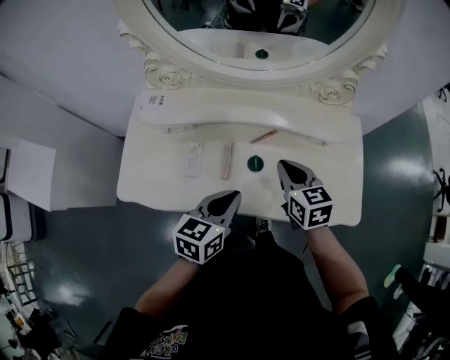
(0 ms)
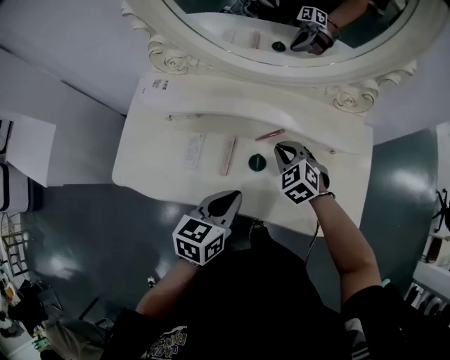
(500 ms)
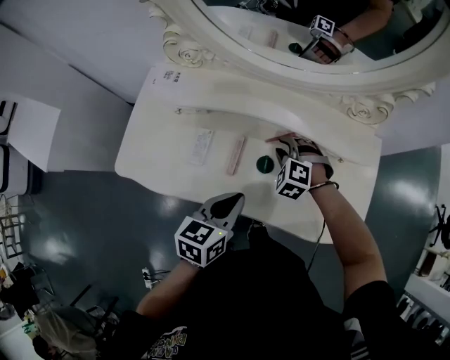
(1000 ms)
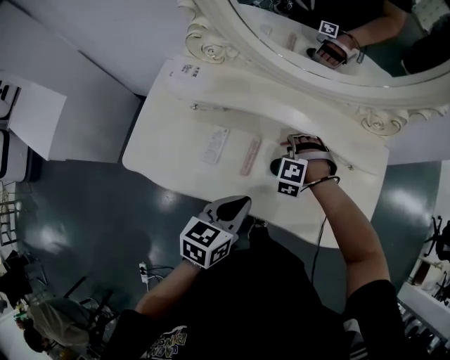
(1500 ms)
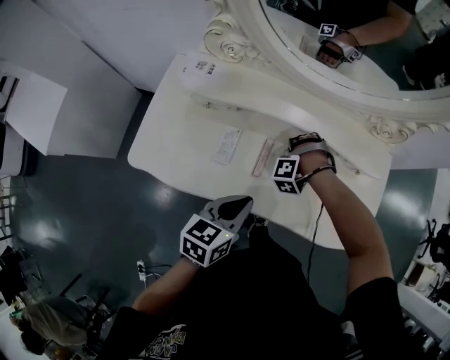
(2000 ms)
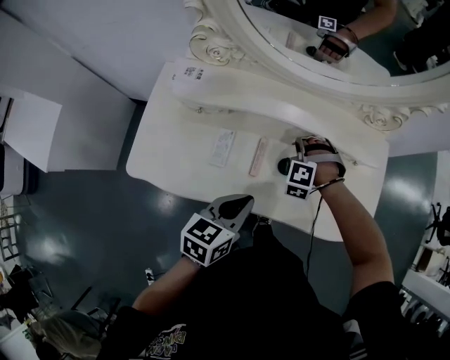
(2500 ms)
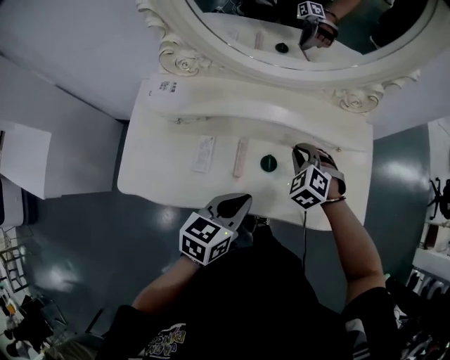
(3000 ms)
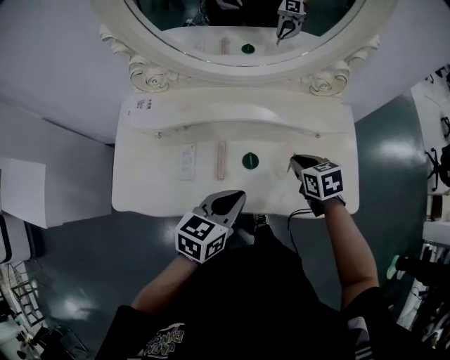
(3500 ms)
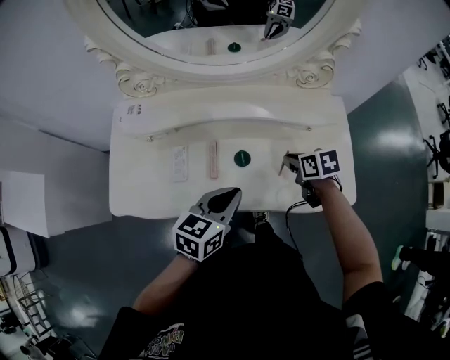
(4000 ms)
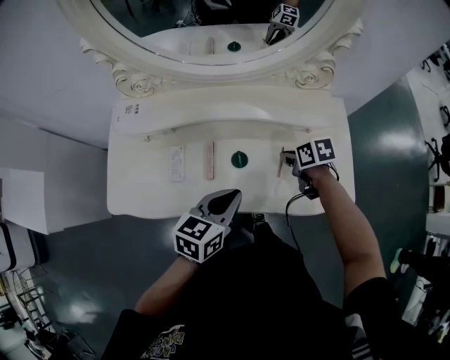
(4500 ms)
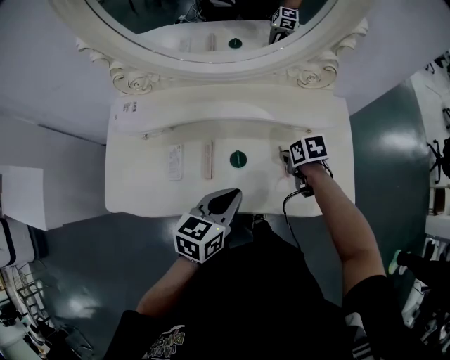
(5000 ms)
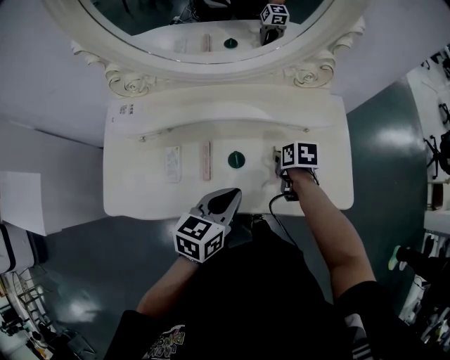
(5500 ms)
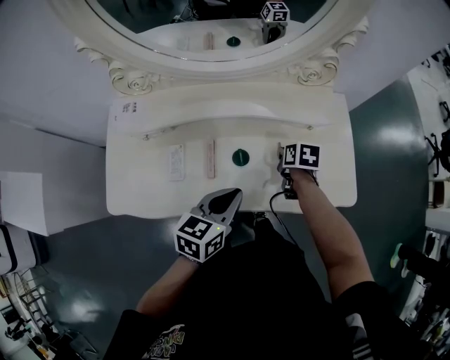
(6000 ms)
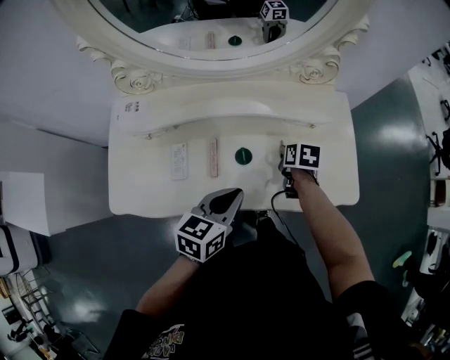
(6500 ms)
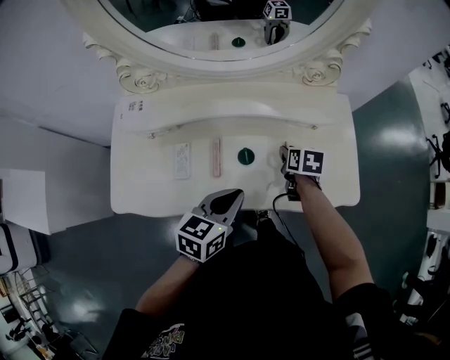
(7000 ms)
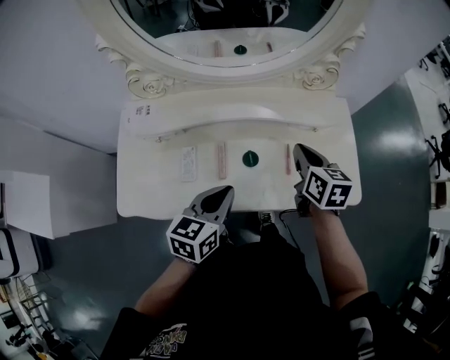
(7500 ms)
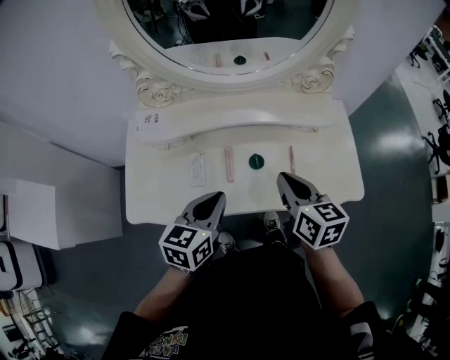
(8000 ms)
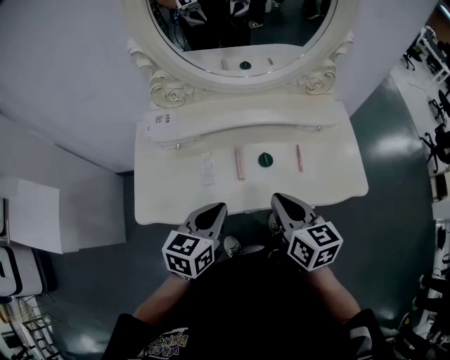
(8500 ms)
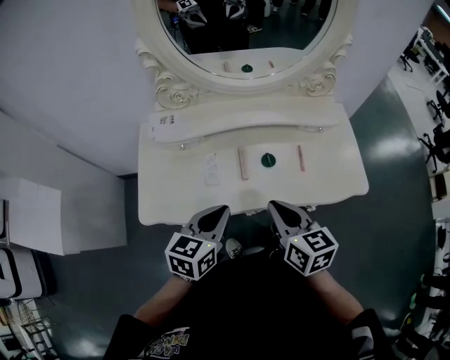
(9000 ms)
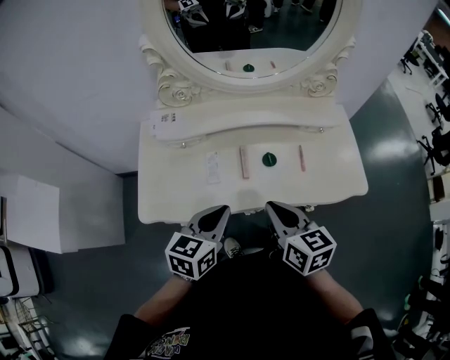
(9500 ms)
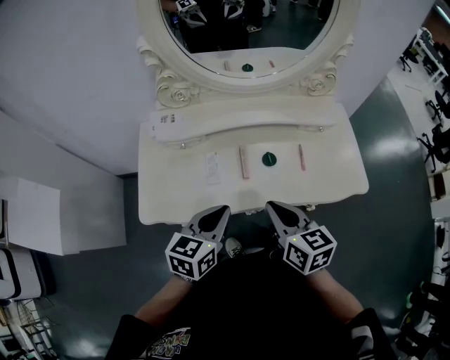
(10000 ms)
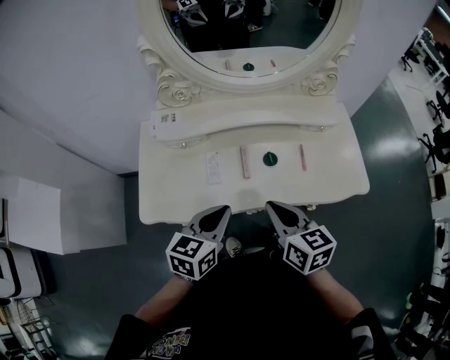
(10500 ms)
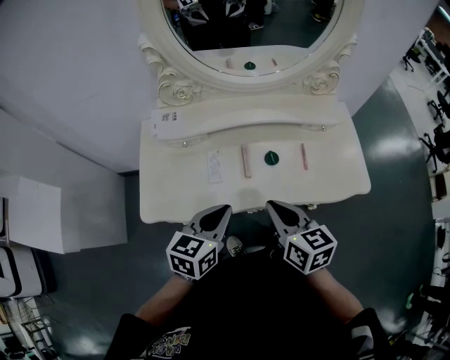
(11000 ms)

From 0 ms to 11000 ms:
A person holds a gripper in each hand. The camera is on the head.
From 0 ms to 2000 ms: The left gripper moves roughly 5 cm, while the right gripper shifts some 15 cm downward, and twists some 110 degrees counterclockwise, seen from behind.
From 2000 ms to 3500 ms: The right gripper heads to the right and upward, covering about 20 cm, and rolls clockwise, seen from behind, by about 110 degrees. The left gripper moves to the right, some 5 cm.
From 3500 ms to 5500 ms: The right gripper shifts some 10 cm downward, and turns by approximately 30 degrees.
From 5500 ms to 7500 ms: The right gripper shifts some 15 cm upward, and tips its fingers upward by approximately 30 degrees. The left gripper heads to the left, covering approximately 5 cm.
From 7500 ms to 9000 ms: The right gripper travels backward and to the left by some 25 cm. The left gripper is displaced to the left and backward by roughly 15 cm.
From 9000 ms to 11000 ms: The grippers move only a little.

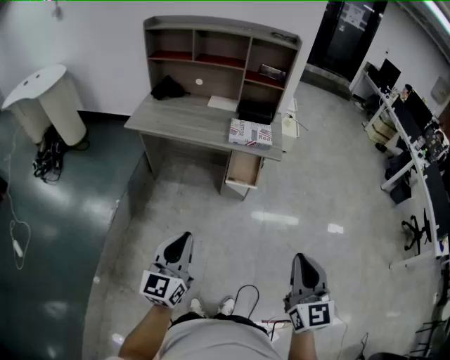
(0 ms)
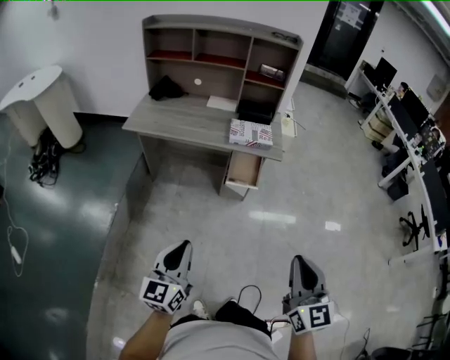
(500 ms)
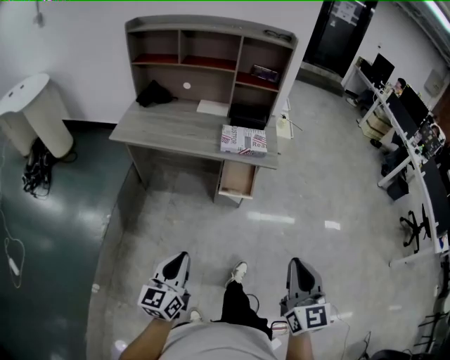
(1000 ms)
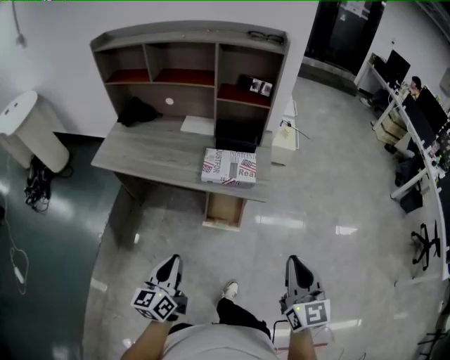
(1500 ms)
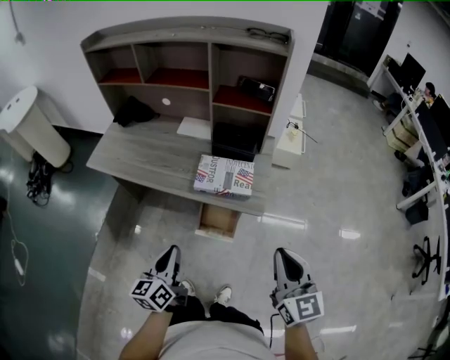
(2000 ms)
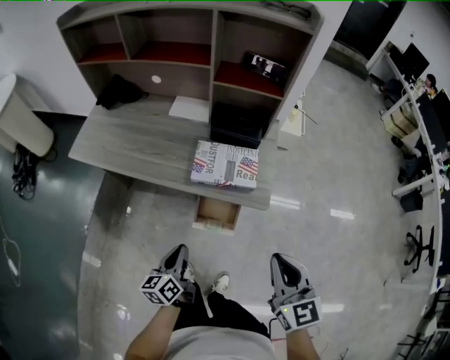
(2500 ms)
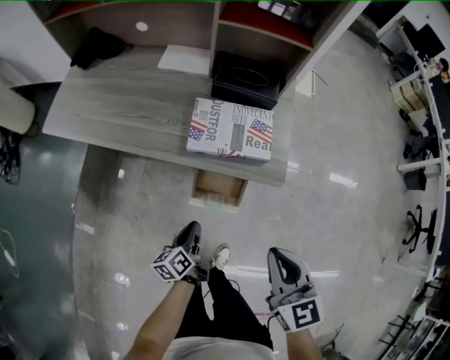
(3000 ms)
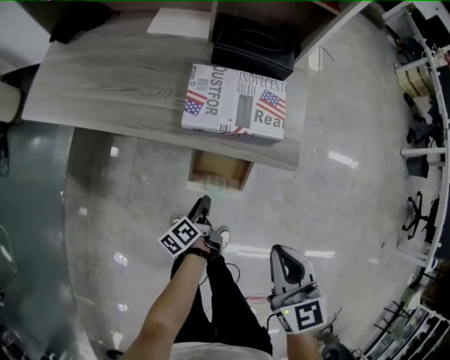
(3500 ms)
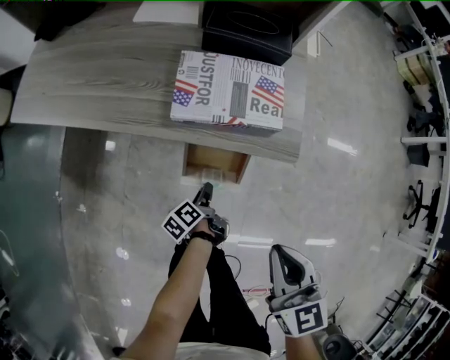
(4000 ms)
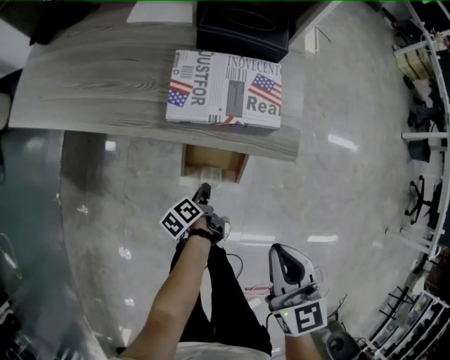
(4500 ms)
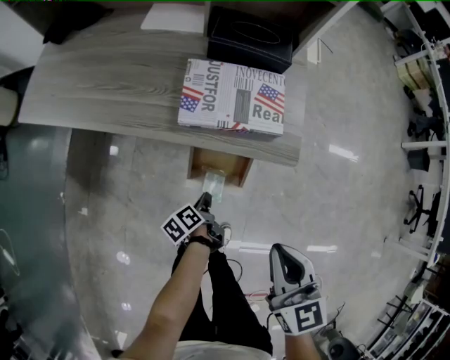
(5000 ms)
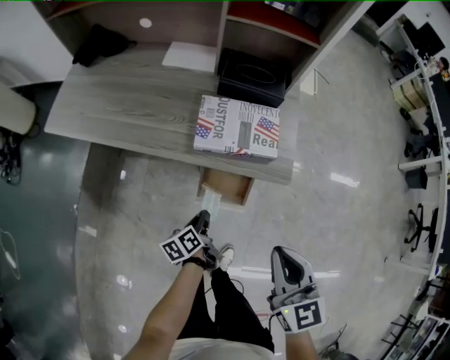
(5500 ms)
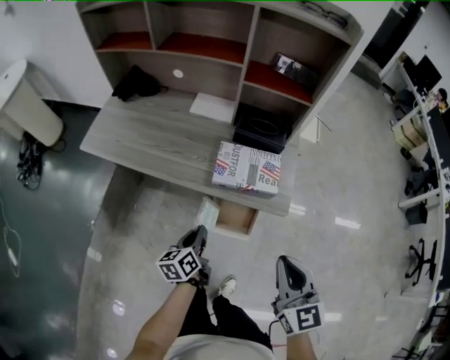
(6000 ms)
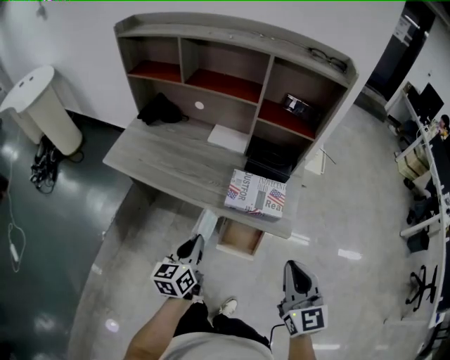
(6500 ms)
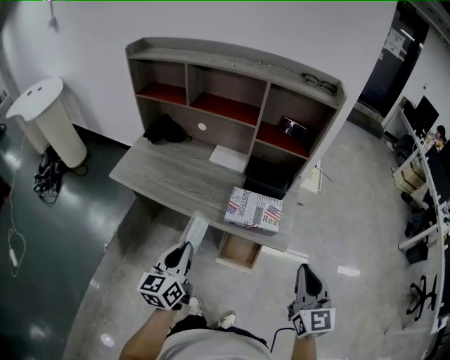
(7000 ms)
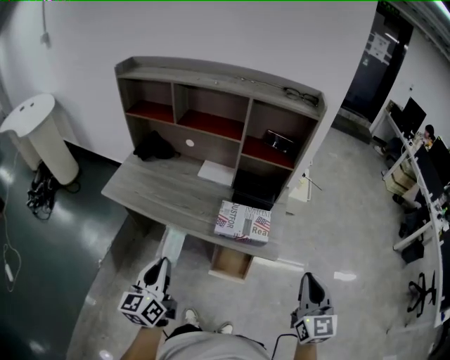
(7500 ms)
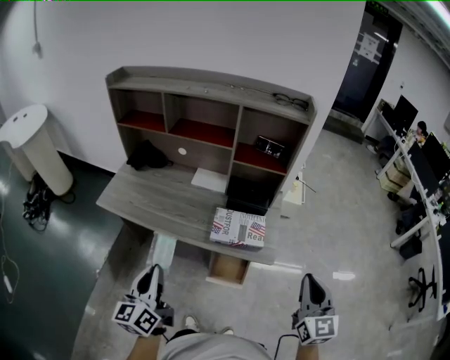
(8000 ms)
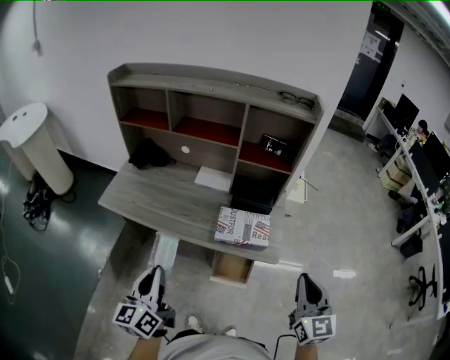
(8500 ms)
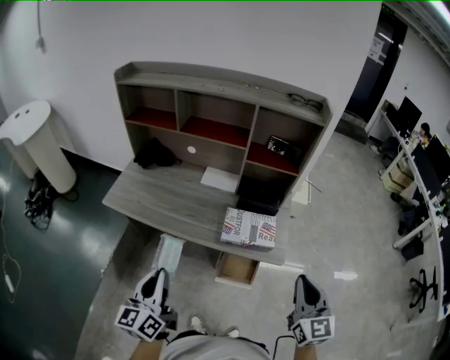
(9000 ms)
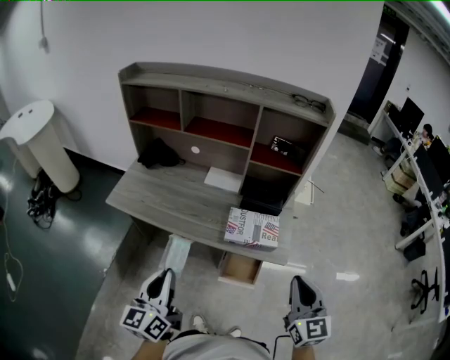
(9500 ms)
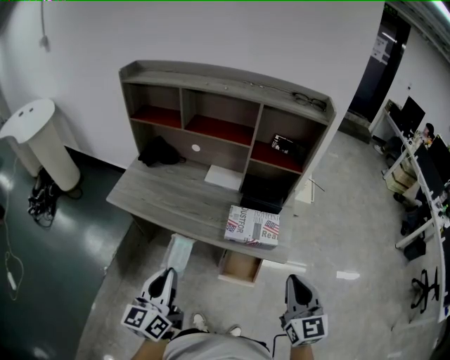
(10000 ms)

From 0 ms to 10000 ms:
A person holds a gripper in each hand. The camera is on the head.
From 0 ms to 2000 ms: Both grippers travel together forward, approximately 40 cm. The left gripper changes its angle by some 30 degrees.
From 2000 ms to 4000 ms: The right gripper heads downward, covering some 25 cm, and changes its angle by about 20 degrees. The left gripper goes some 40 cm downward, rotates around the line of its fingers by approximately 50 degrees, counterclockwise from behind, and opens its fingers.
From 4000 ms to 6000 ms: The left gripper heads upward, covering some 25 cm, rotates roughly 40 degrees, and closes up. Meanwhile the right gripper moves upward, approximately 15 cm.
From 6000 ms to 8000 ms: The left gripper travels upward and to the left by about 30 cm, and turns by roughly 30 degrees. The right gripper heads upward and to the right, covering roughly 15 cm.
From 8000 ms to 10000 ms: The right gripper shifts some 10 cm to the left.

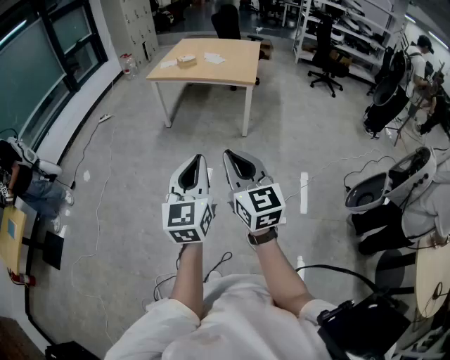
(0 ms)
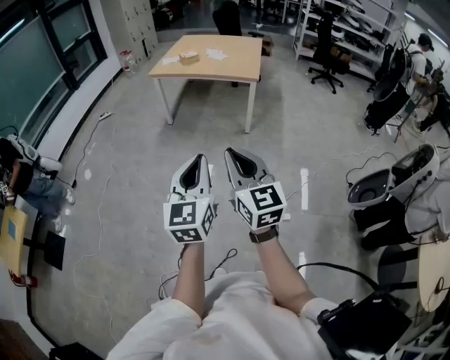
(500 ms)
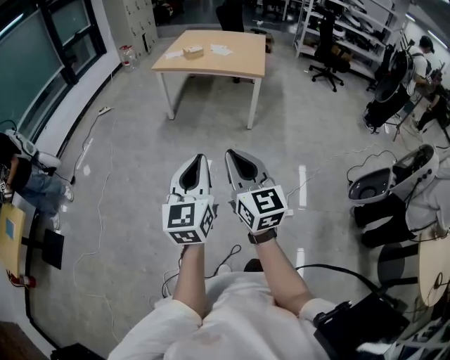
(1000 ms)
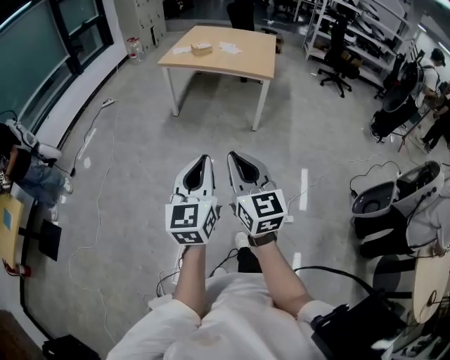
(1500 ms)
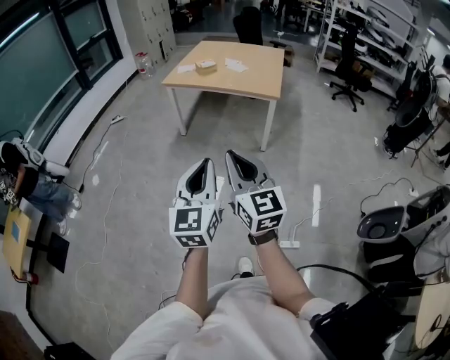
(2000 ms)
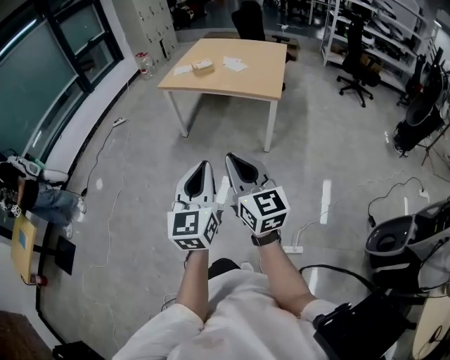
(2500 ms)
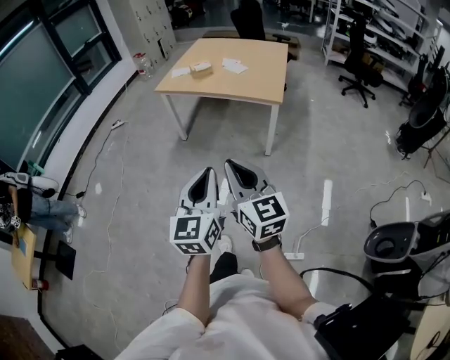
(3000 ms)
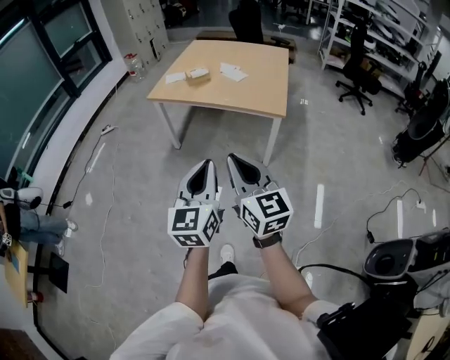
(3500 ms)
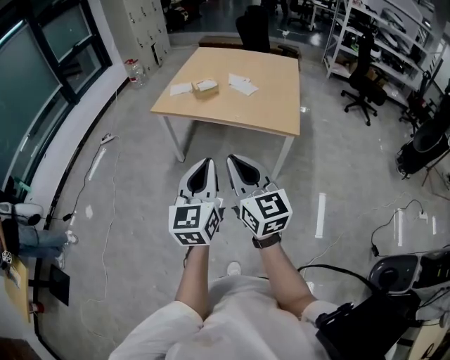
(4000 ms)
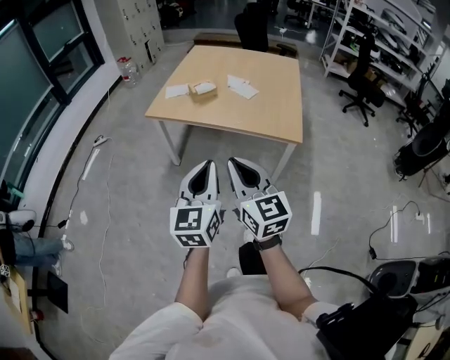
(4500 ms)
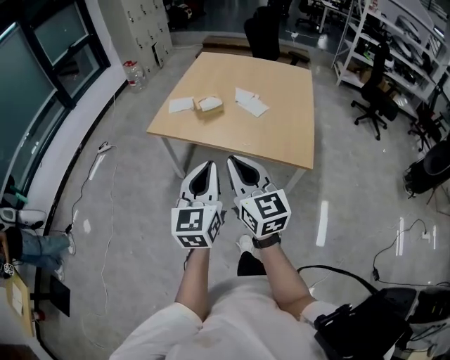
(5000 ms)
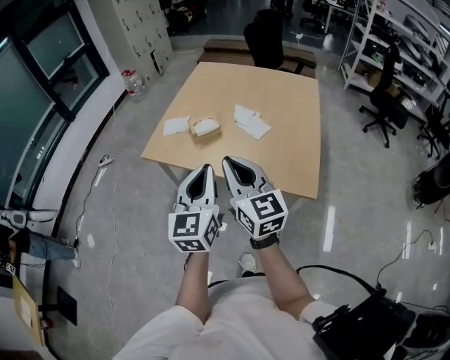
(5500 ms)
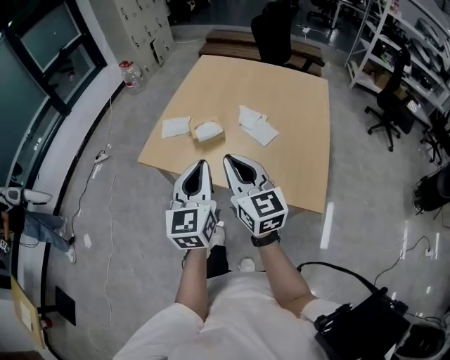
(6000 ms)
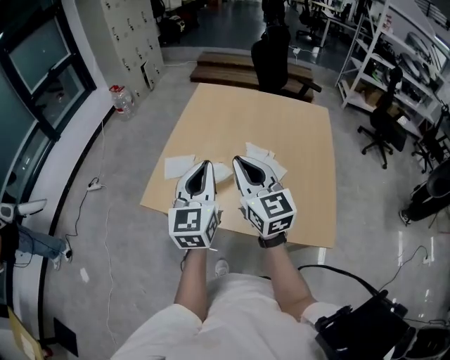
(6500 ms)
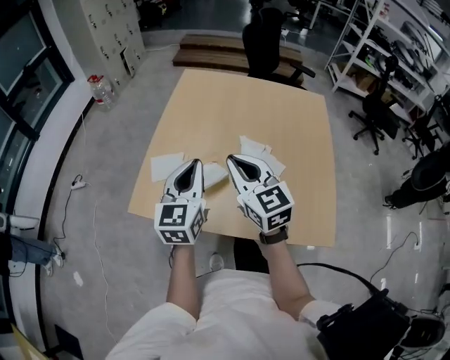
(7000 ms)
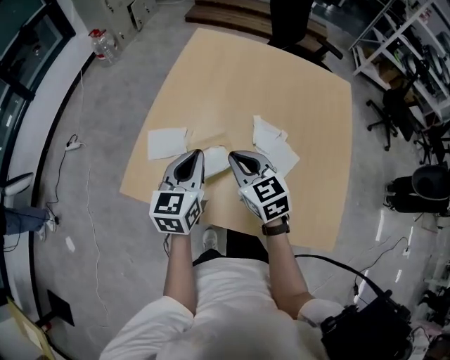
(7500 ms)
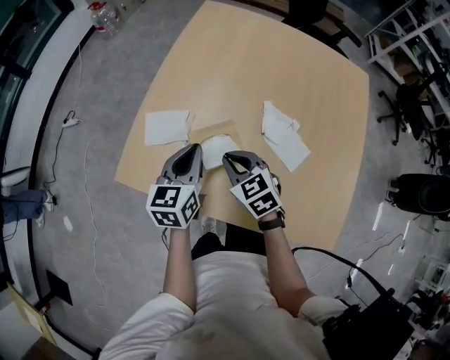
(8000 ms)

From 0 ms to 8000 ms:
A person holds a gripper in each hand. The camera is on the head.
From 0 ms to 2000 ms: Both grippers move forward, roughly 20 cm.
From 2000 ms to 4000 ms: The two grippers travel together, forward, about 40 cm.
From 4000 ms to 6000 ms: Both grippers are carried forward, roughly 50 cm.
From 6000 ms to 8000 ms: Both grippers move forward and downward, approximately 40 cm. The right gripper points its fingers approximately 40 degrees further downward. Meanwhile the left gripper turns by some 30 degrees.
